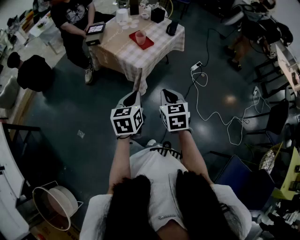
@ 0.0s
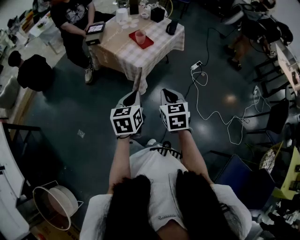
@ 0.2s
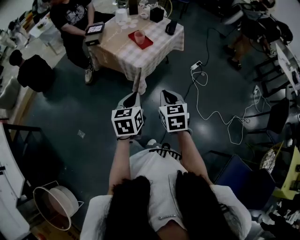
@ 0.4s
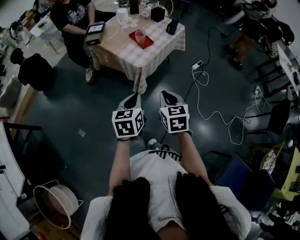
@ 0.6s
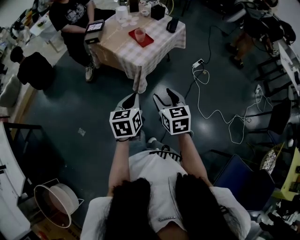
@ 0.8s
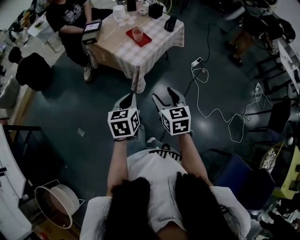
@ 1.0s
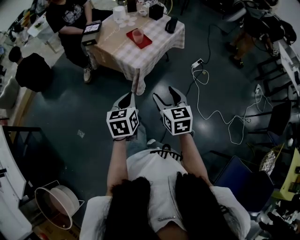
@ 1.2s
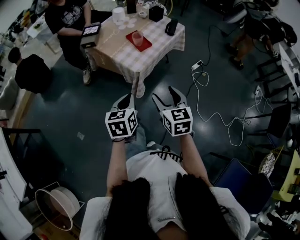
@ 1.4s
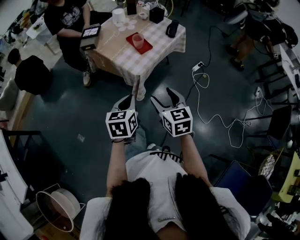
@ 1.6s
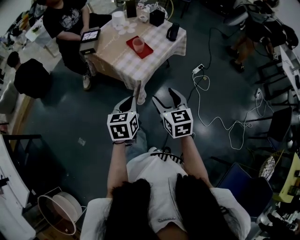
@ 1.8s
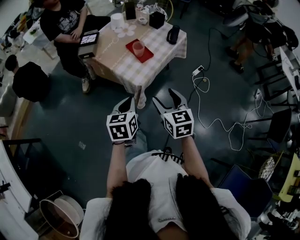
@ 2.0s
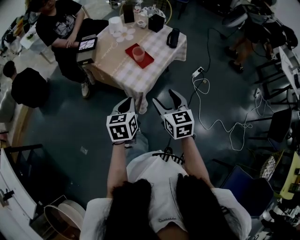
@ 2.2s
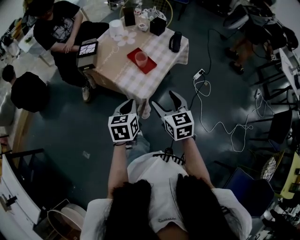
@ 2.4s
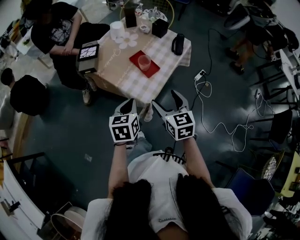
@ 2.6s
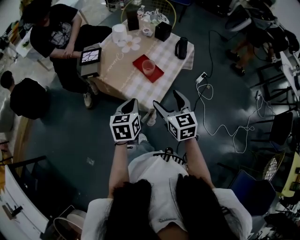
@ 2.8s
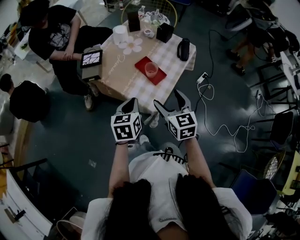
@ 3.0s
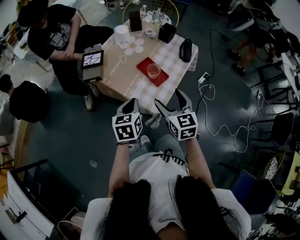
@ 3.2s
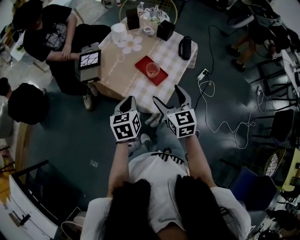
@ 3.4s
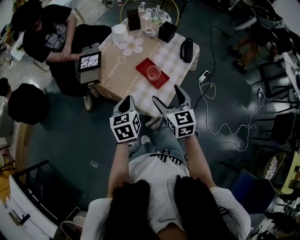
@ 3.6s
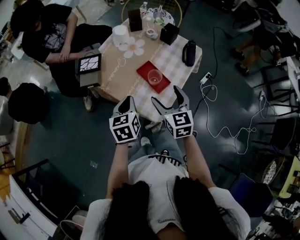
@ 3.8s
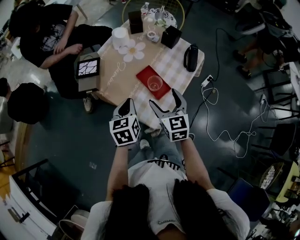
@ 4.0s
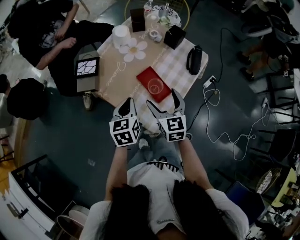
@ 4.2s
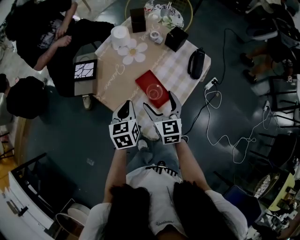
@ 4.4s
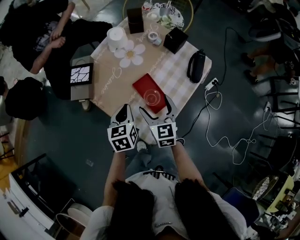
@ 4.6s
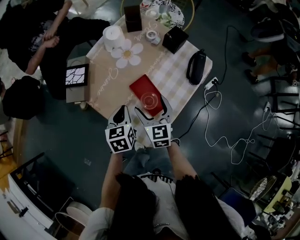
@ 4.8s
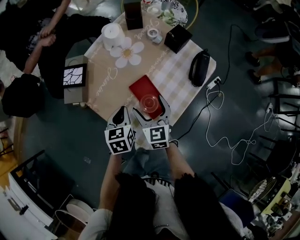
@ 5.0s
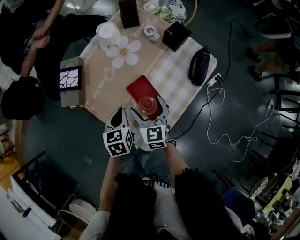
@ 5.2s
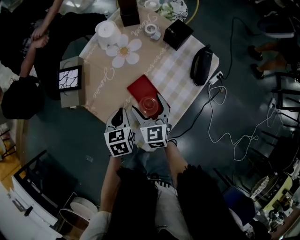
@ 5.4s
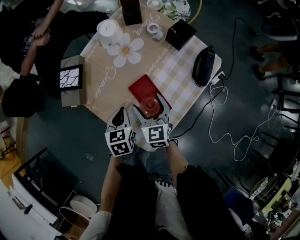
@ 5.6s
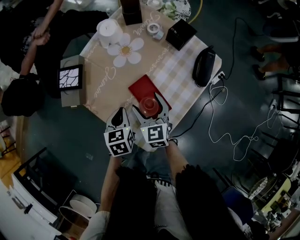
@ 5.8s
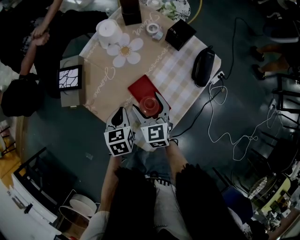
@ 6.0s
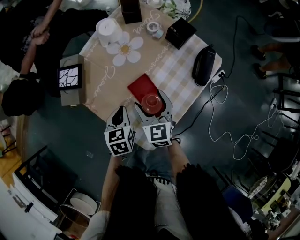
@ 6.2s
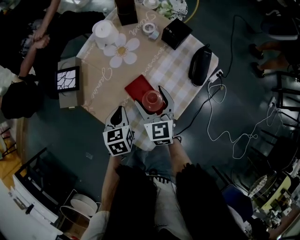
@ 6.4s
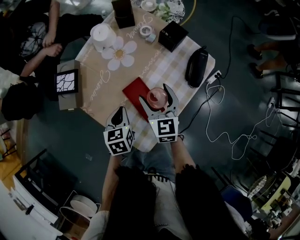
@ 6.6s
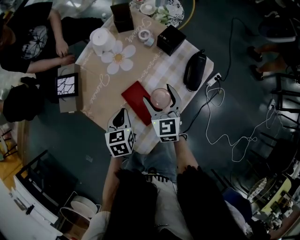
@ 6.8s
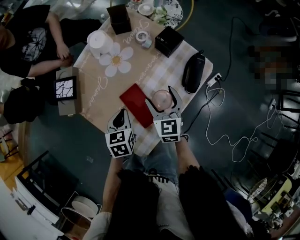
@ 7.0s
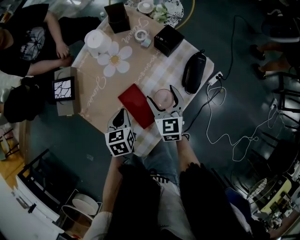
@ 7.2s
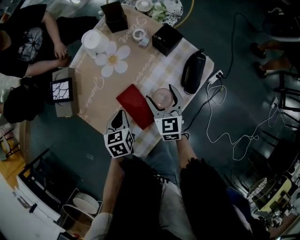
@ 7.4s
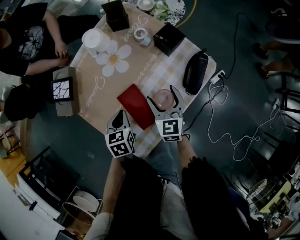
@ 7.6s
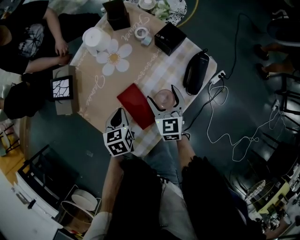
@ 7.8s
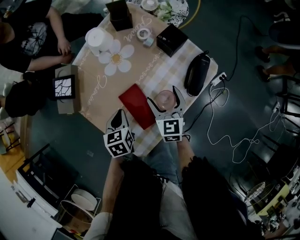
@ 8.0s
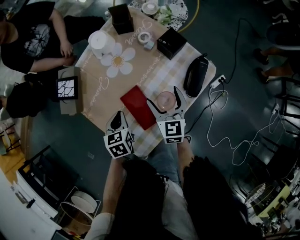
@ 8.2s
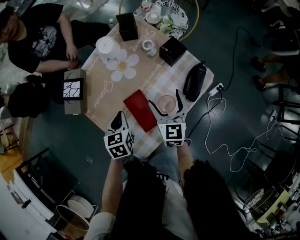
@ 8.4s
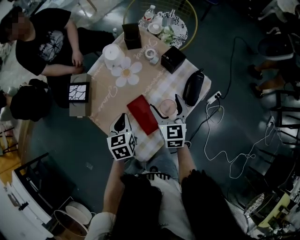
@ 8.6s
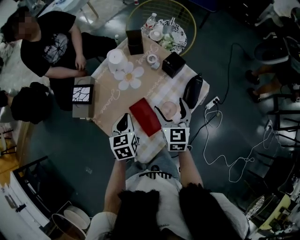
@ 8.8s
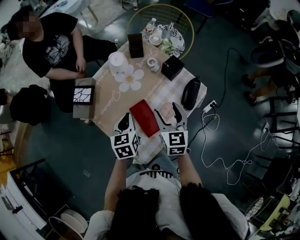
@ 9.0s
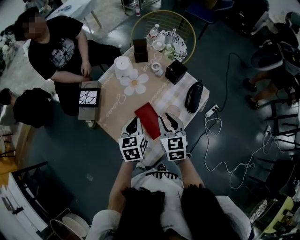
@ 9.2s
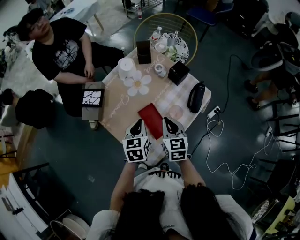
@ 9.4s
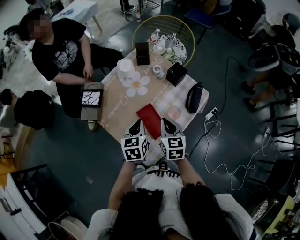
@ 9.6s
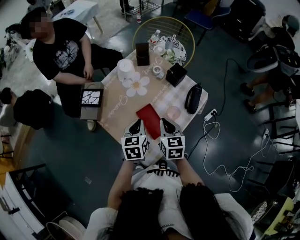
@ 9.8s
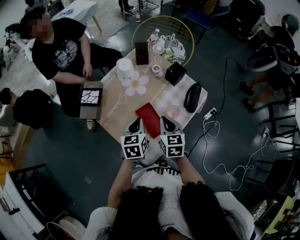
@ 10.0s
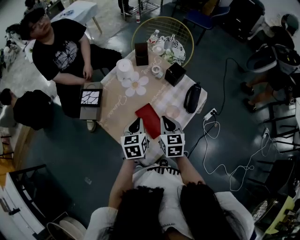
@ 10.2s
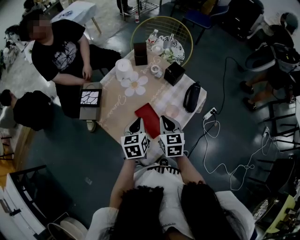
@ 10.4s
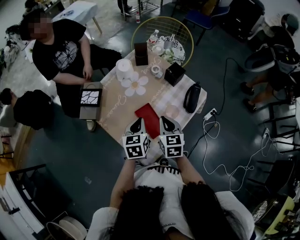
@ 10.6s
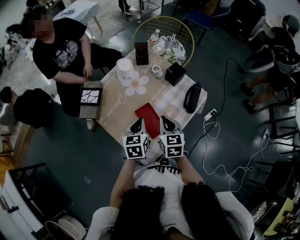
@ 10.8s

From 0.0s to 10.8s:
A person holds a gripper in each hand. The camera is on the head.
From 0.0s to 1.6s: The two grippers go about 5 cm forward. The right gripper opens its fingers.
From 1.6s to 3.0s: The grippers both shift forward by approximately 25 cm.
From 3.0s to 4.6s: The two grippers go approximately 20 cm forward and downward.
From 4.6s to 6.2s: The right gripper travels forward by about 5 cm. Meanwhile the left gripper goes roughly 5 cm downward.
From 6.2s to 7.8s: The right gripper travels to the right by approximately 10 cm. The left gripper ends up some 5 cm from where it was.
From 7.8s to 9.2s: The right gripper heads upward and backward, covering roughly 15 cm, and closes. The left gripper heads upward, covering some 10 cm.
From 9.2s to 10.8s: The grippers make only small movements.

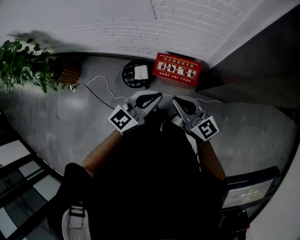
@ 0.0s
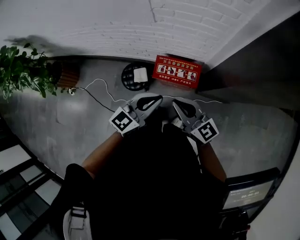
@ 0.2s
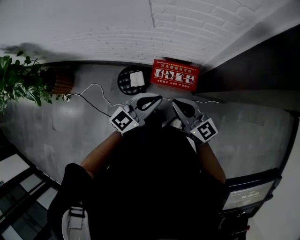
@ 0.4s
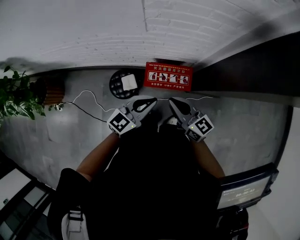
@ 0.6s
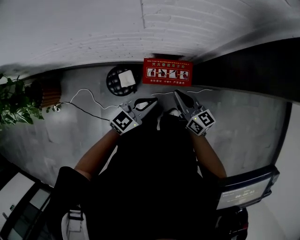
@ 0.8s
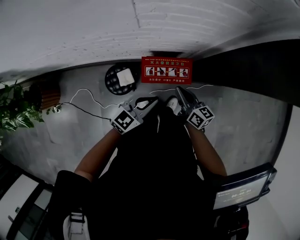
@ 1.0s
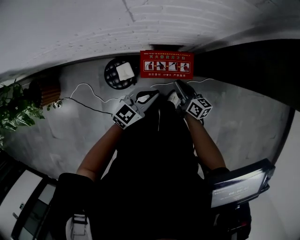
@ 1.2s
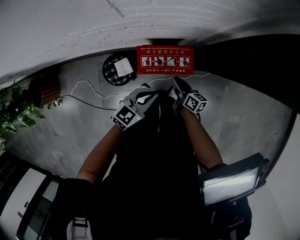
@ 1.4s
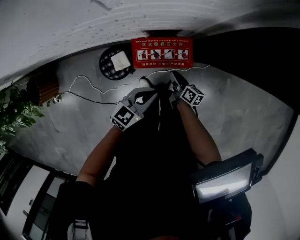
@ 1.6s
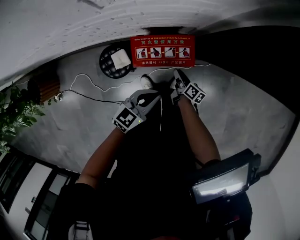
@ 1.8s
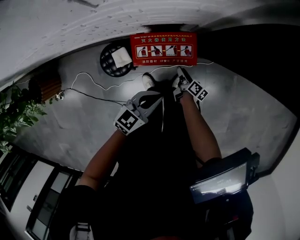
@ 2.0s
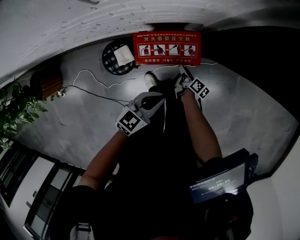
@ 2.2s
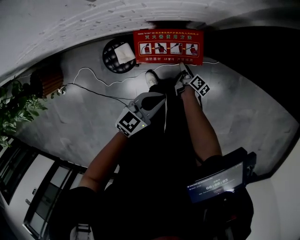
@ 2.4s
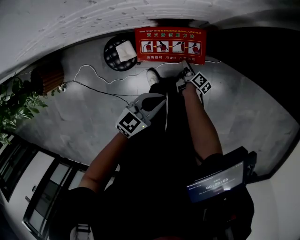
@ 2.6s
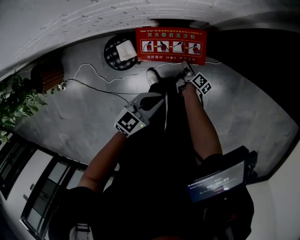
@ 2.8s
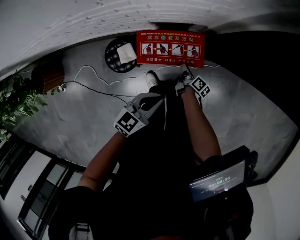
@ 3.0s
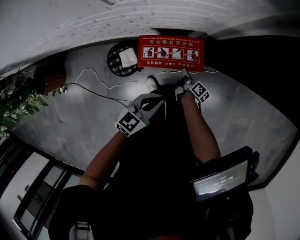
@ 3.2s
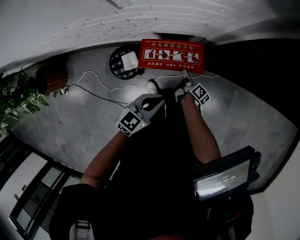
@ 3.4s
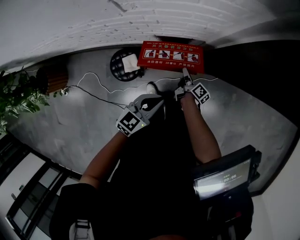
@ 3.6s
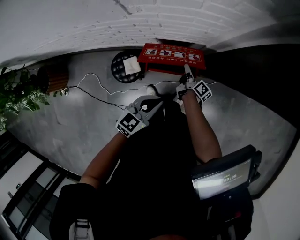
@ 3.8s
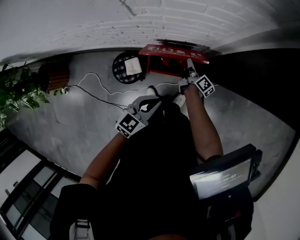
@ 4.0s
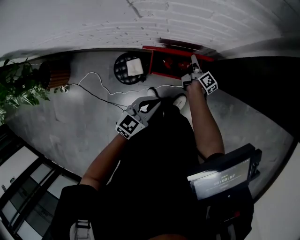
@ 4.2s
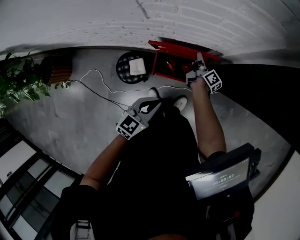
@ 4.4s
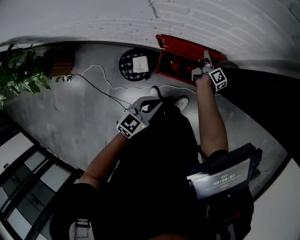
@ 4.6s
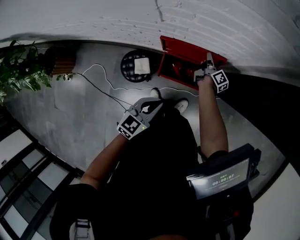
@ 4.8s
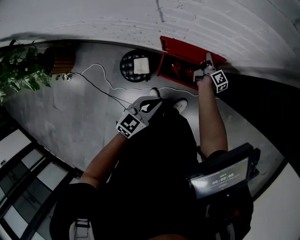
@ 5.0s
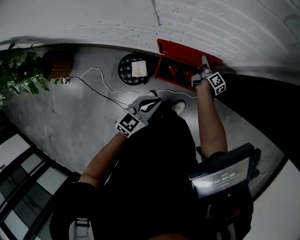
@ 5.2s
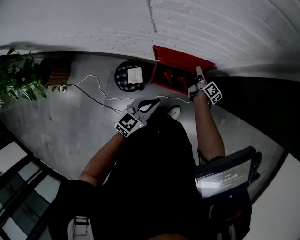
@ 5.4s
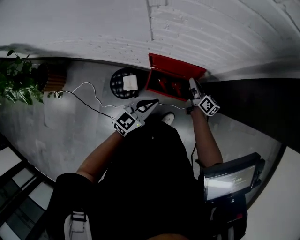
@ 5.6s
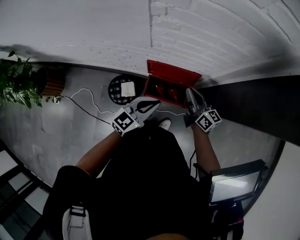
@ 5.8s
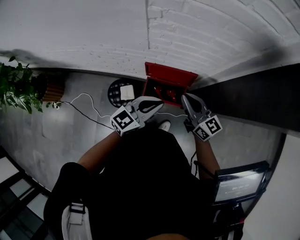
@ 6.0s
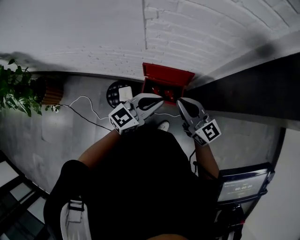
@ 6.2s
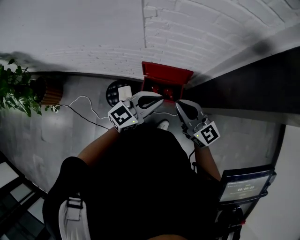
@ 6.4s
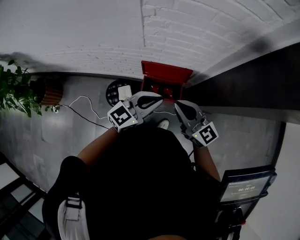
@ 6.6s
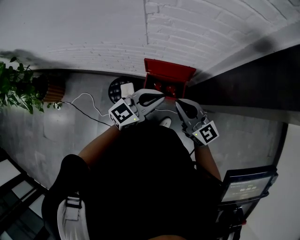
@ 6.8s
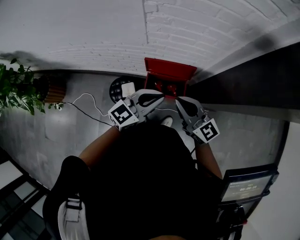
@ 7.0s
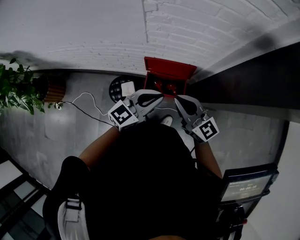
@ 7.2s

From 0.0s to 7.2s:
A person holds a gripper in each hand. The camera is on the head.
From 0.0s to 1.4s: The right gripper is displaced downward and forward by roughly 35 cm, and rolls clockwise, seen from behind, by roughly 50 degrees. The left gripper shifts roughly 25 cm downward and forward, and changes its angle by approximately 20 degrees.
From 1.4s to 2.8s: The right gripper moves downward, approximately 25 cm, swivels some 30 degrees, and opens and closes again. The left gripper goes roughly 10 cm downward.
From 2.8s to 4.4s: The right gripper heads upward and forward, covering approximately 30 cm, and rotates roughly 20 degrees. Meanwhile the left gripper is displaced upward and to the left by approximately 10 cm.
From 4.4s to 5.8s: The right gripper moves upward, about 25 cm, swivels about 50 degrees, and opens, then closes once more, while the left gripper goes about 15 cm upward and forward.
From 5.8s to 7.2s: The left gripper moves upward, about 10 cm, while the right gripper shifts about 20 cm upward and backward, and changes its angle by about 30 degrees.

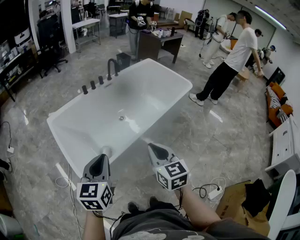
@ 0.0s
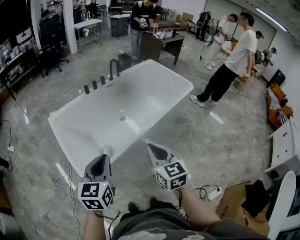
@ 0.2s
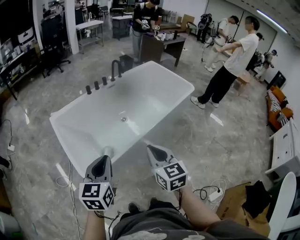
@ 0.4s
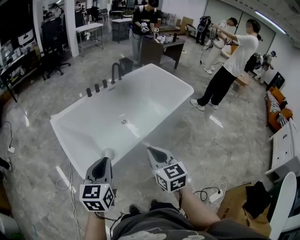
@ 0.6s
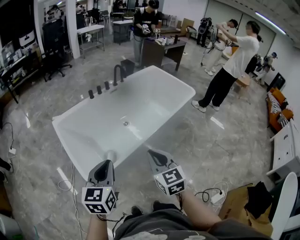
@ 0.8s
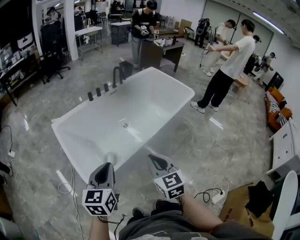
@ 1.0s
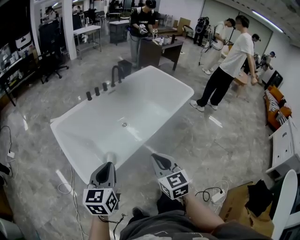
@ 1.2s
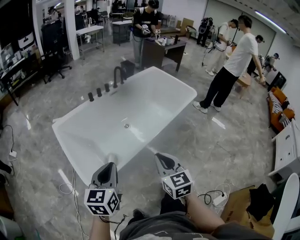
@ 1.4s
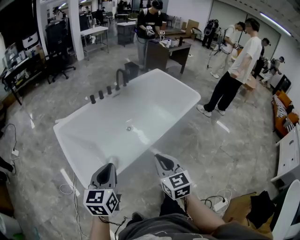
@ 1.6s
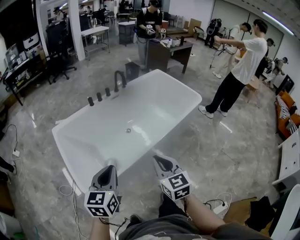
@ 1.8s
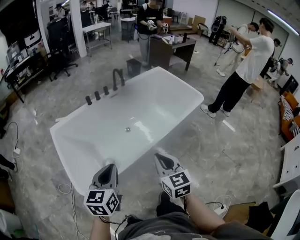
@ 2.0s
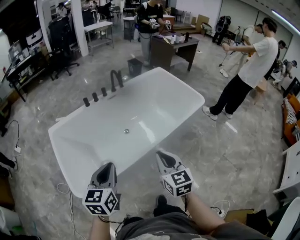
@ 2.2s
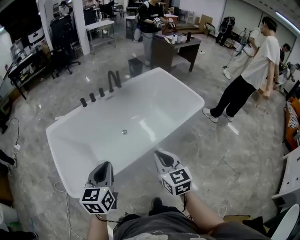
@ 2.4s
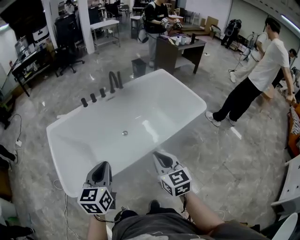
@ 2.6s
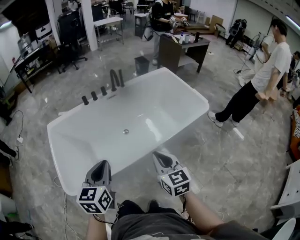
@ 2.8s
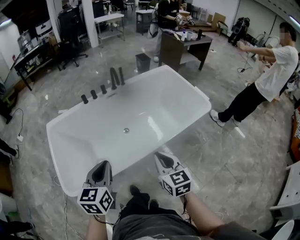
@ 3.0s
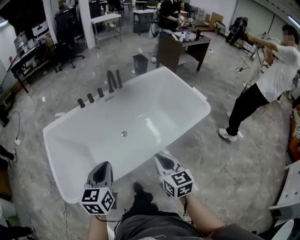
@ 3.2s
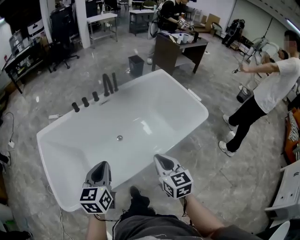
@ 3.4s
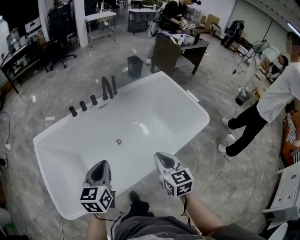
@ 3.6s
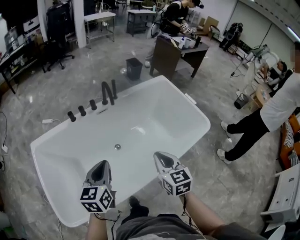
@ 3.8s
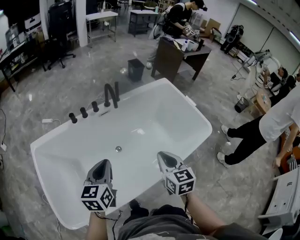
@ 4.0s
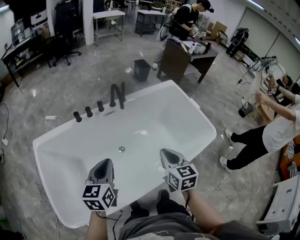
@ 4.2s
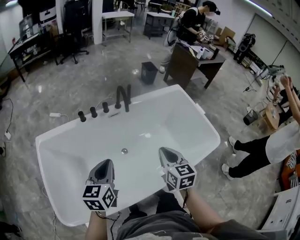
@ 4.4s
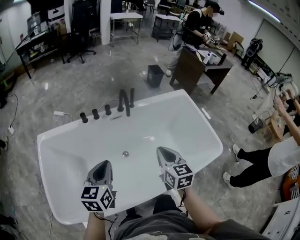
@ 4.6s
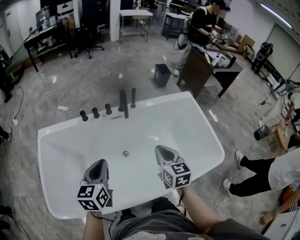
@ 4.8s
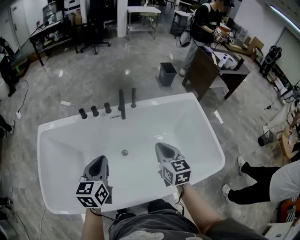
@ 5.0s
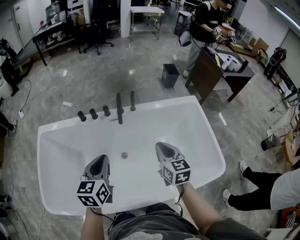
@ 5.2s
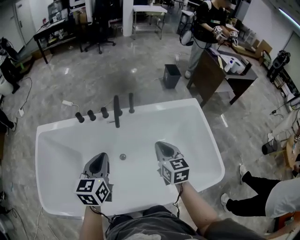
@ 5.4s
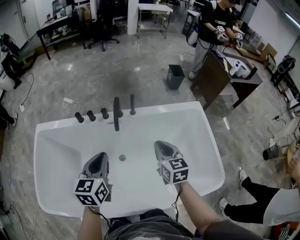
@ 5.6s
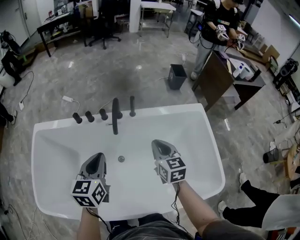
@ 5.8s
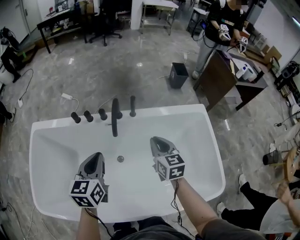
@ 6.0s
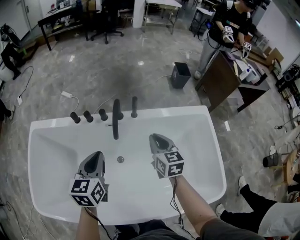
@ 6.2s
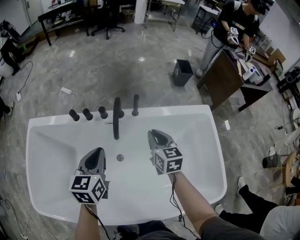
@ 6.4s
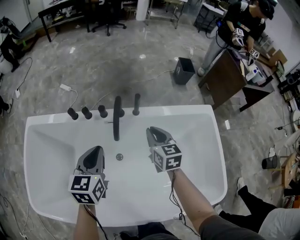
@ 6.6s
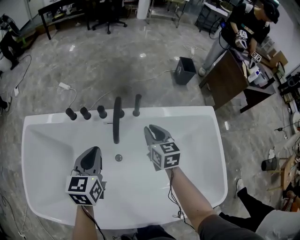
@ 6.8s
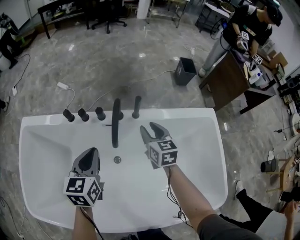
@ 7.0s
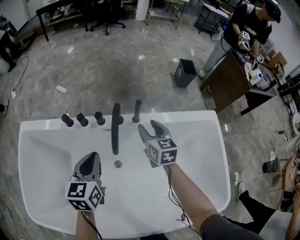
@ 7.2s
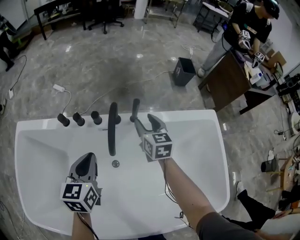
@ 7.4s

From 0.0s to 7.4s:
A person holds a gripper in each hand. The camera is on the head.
From 0.0s to 1.4s: The grippers make only small movements.
From 1.4s to 3.0s: Both grippers move to the right and forward, some 30 cm.
From 3.0s to 4.4s: Both grippers travel together forward, approximately 30 cm.
From 4.4s to 6.0s: The grippers both shift forward and to the right by about 30 cm. The left gripper swivels approximately 20 degrees. Meanwhile the right gripper changes its angle by approximately 20 degrees.
From 6.0s to 7.4s: The right gripper heads forward and downward, covering some 25 cm, and opens. Meanwhile the left gripper moves forward and downward, some 15 cm.
